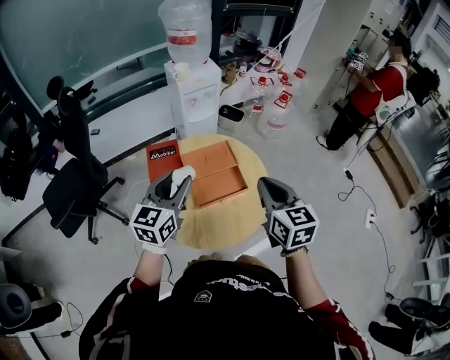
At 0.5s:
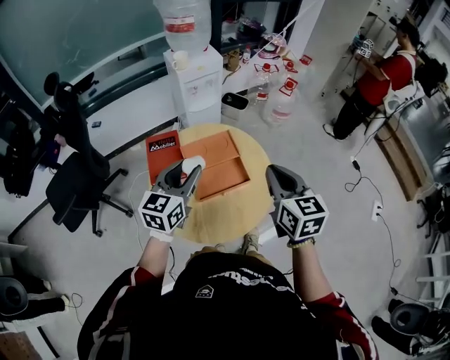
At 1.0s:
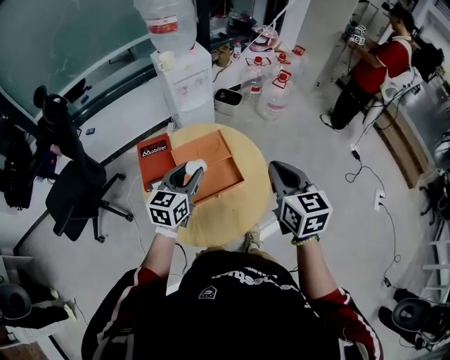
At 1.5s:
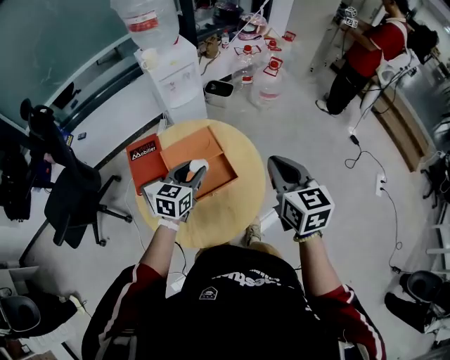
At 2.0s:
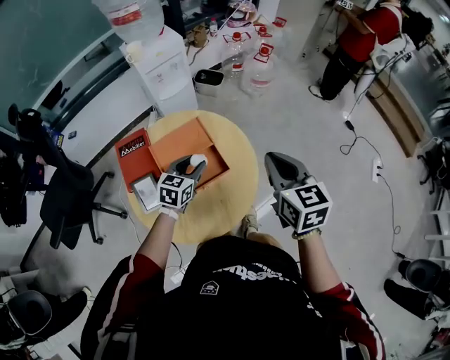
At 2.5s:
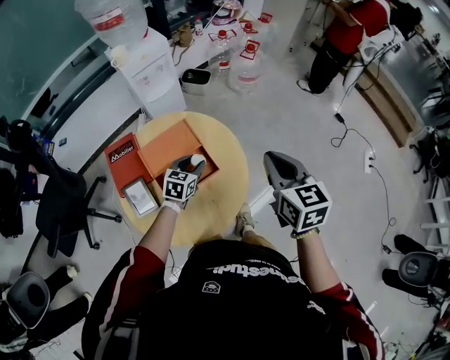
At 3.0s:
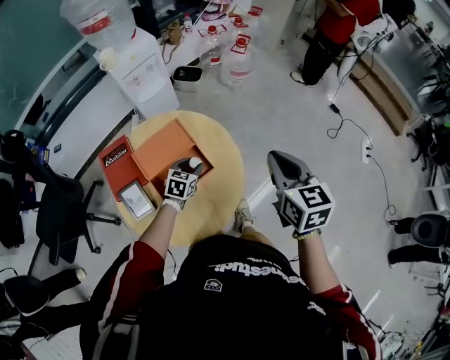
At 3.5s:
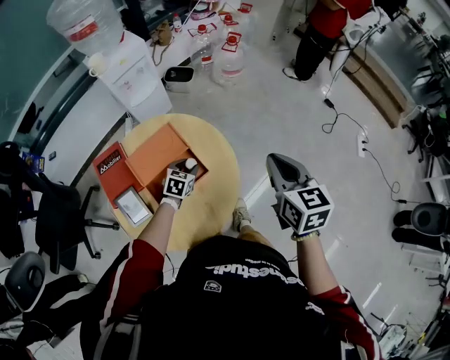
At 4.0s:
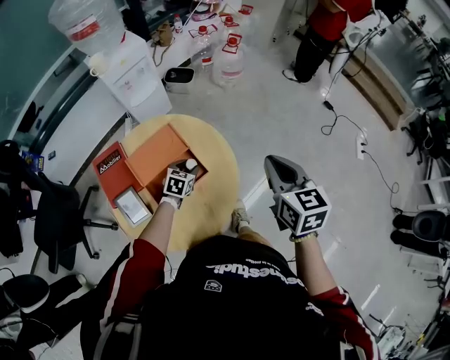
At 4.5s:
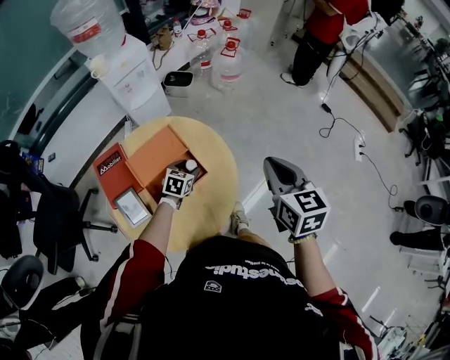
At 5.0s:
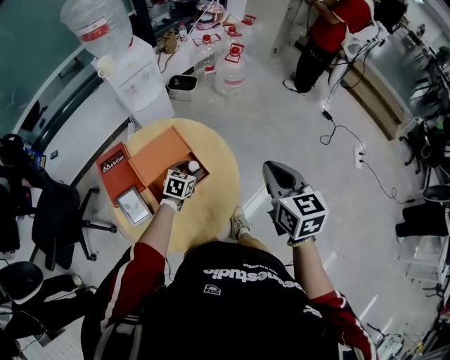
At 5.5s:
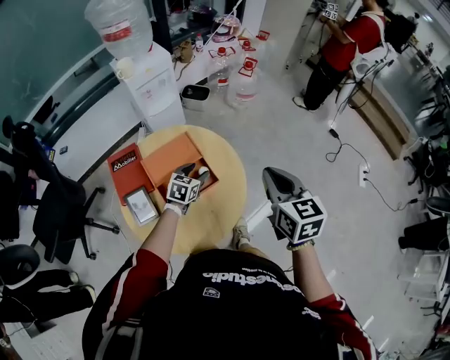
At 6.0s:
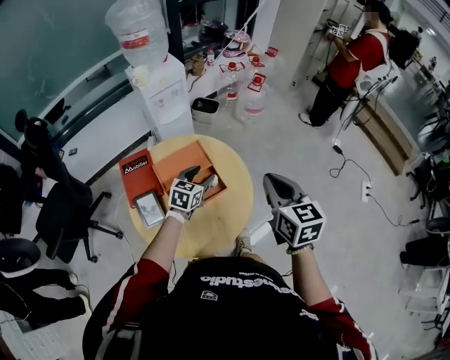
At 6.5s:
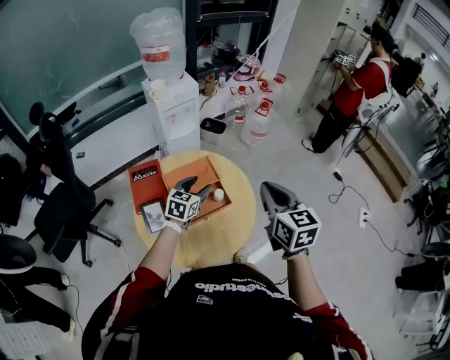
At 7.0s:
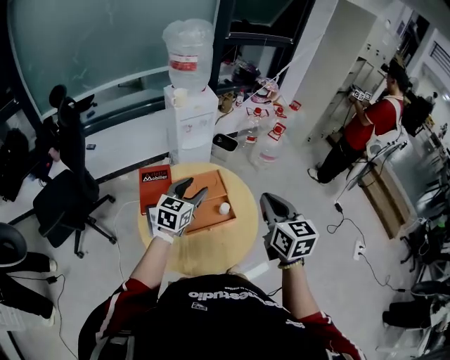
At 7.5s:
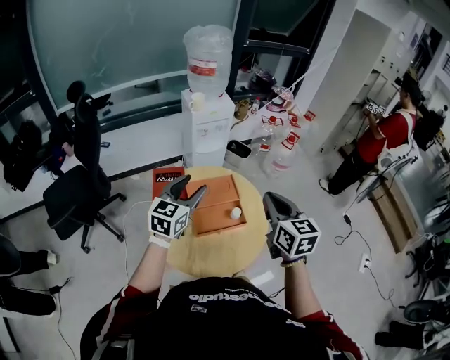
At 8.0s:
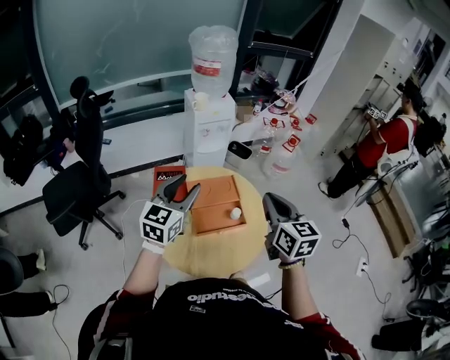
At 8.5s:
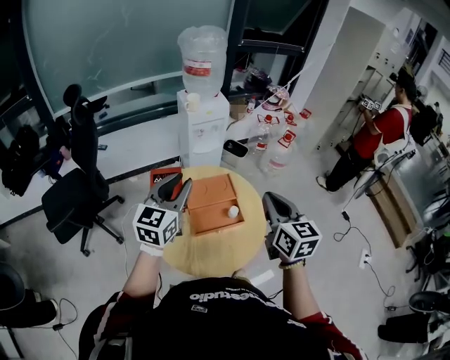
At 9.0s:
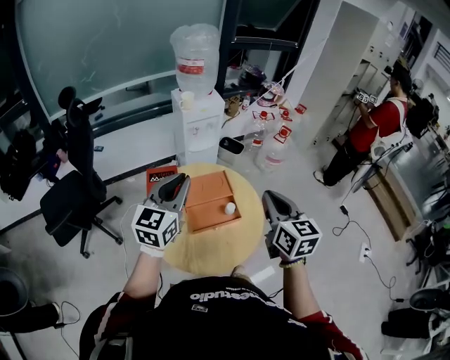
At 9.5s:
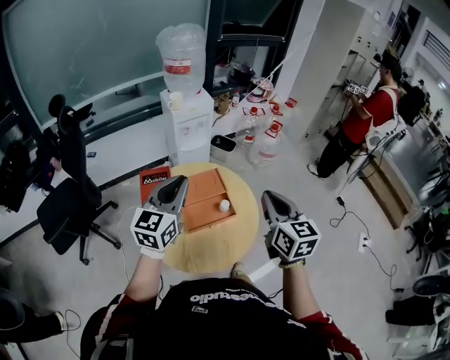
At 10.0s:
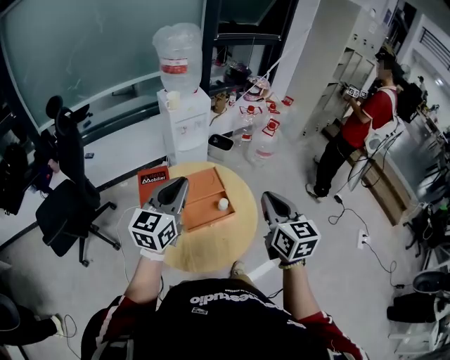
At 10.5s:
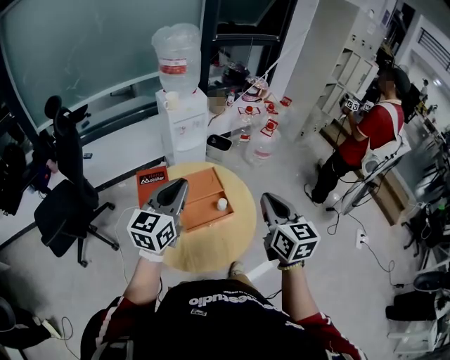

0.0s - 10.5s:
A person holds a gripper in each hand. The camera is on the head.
0.0s - 2.0s: The right gripper is displaced to the right and forward by about 15 cm. The left gripper is displaced downward, to the right and forward by some 30 cm, and swivels about 30 degrees.
2.0s - 4.0s: The left gripper shifts approximately 15 cm downward and to the right, while the right gripper travels to the right by about 5 cm.
4.0s - 6.5s: The right gripper is displaced to the left and upward by some 15 cm. Meanwhile the left gripper moves upward and to the left, some 20 cm, and changes its angle by roughly 20 degrees.
6.5s - 8.5s: The right gripper shifts approximately 5 cm to the left, while the left gripper shifts roughly 25 cm upward and to the left, turns by about 30 degrees, and closes.
8.5s - 10.5s: The left gripper ends up about 5 cm from where it was. Meanwhile the right gripper moves some 5 cm.

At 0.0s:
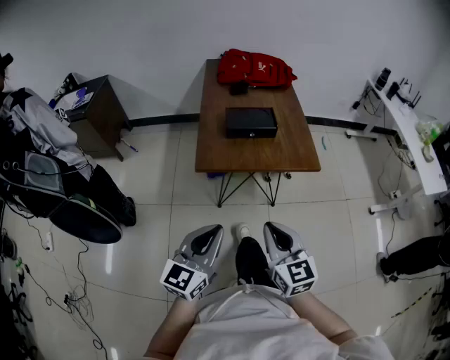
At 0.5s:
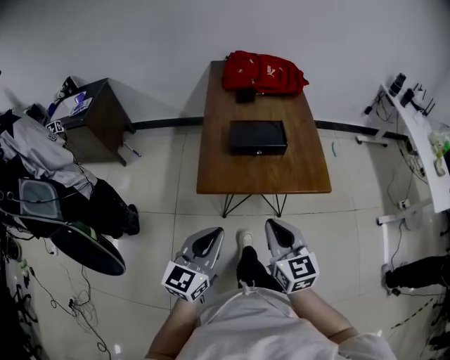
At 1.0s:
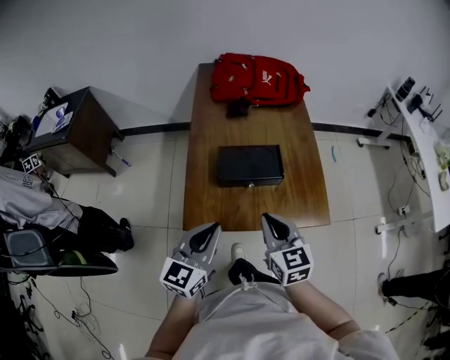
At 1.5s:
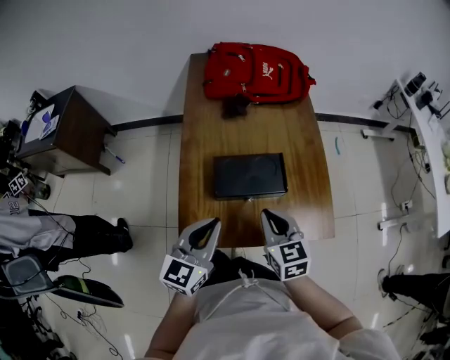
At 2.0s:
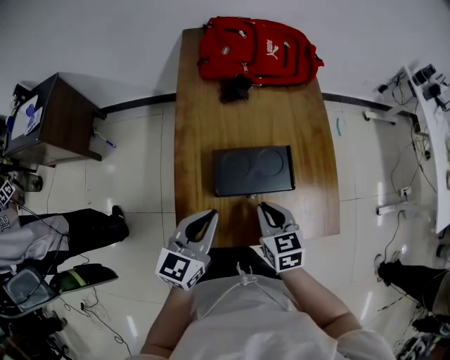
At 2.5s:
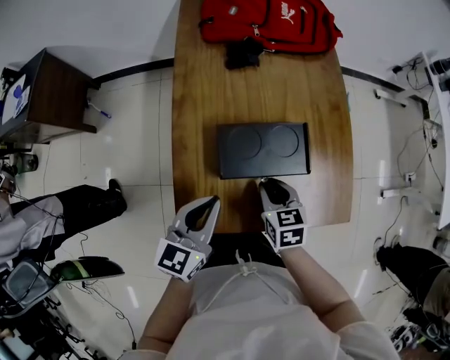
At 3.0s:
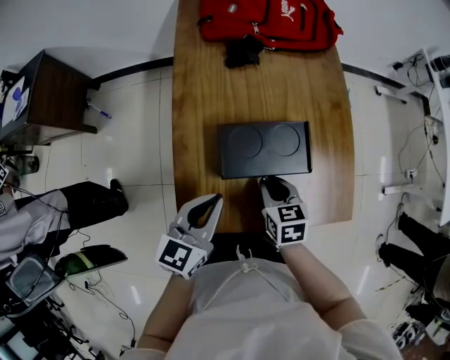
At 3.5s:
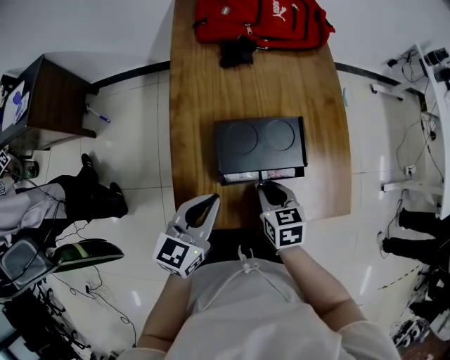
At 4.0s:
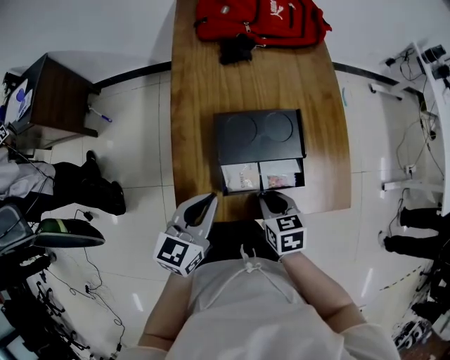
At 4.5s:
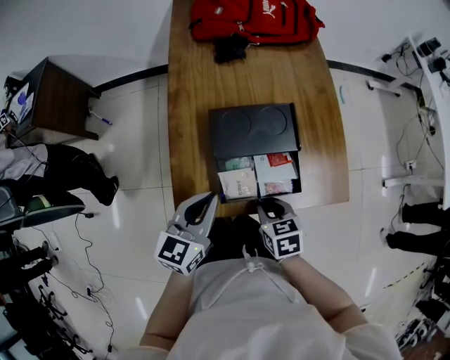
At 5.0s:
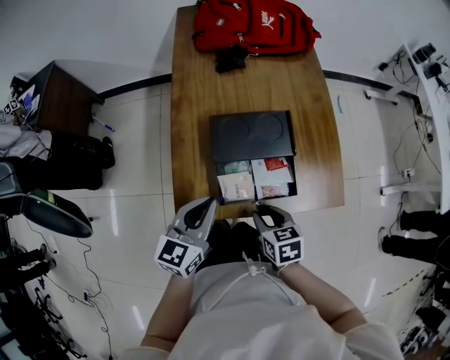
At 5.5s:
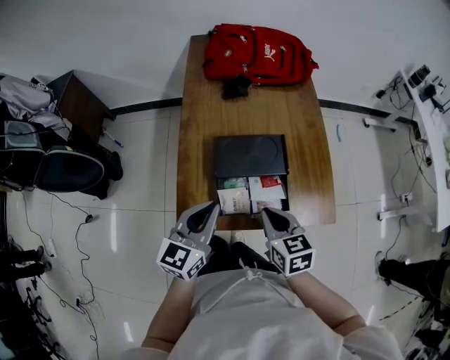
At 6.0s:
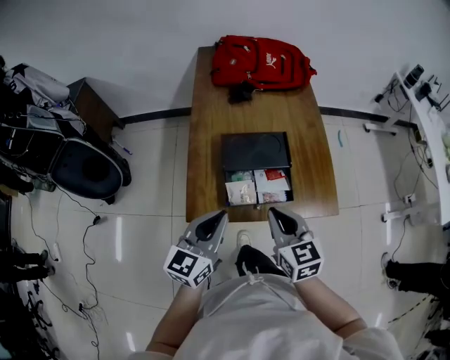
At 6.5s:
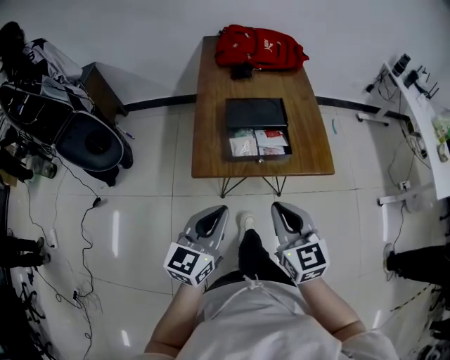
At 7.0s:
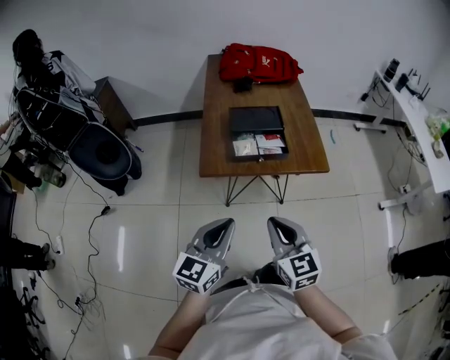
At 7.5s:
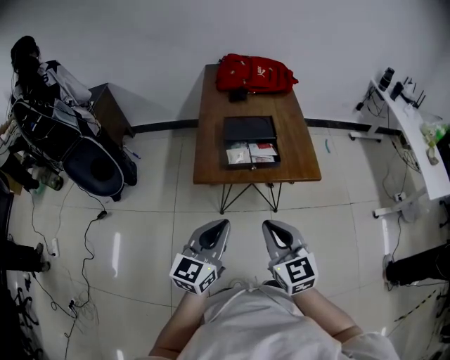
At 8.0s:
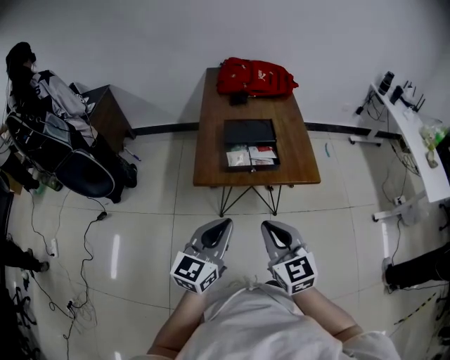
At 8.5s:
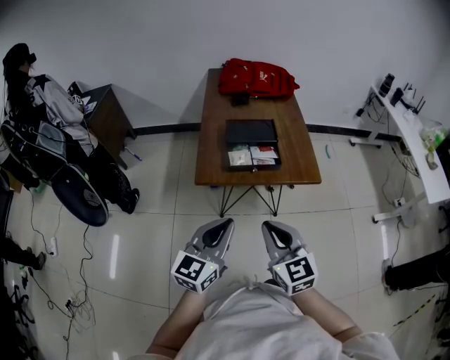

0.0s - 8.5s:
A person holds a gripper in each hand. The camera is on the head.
0.0s - 2.0s: The two grippers travel together, forward, roughly 40 cm. The right gripper swivels about 30 degrees.
2.0s - 4.0s: The right gripper travels downward and backward by some 10 cm. The left gripper moves downward, about 5 cm.
4.0s - 6.5s: The left gripper heads backward and upward, covering some 25 cm. The right gripper goes forward and backward, some 20 cm each way, reversing 2 times, and points its fingers some 30 degrees further upward.
6.5s - 8.5s: Both grippers move backward, roughly 10 cm.

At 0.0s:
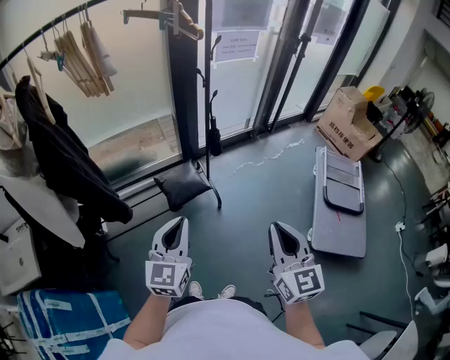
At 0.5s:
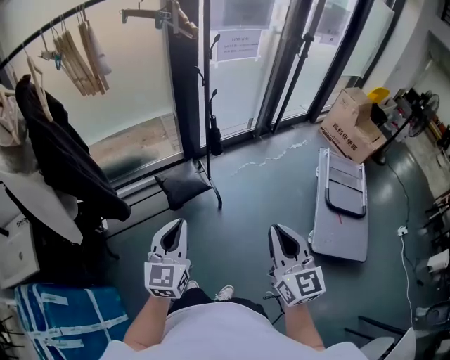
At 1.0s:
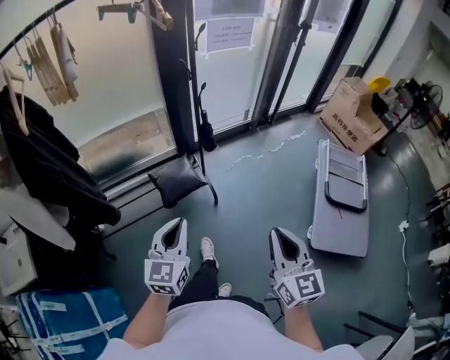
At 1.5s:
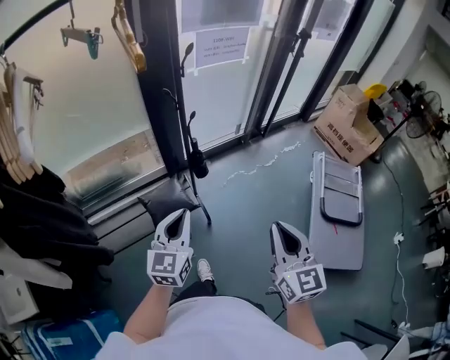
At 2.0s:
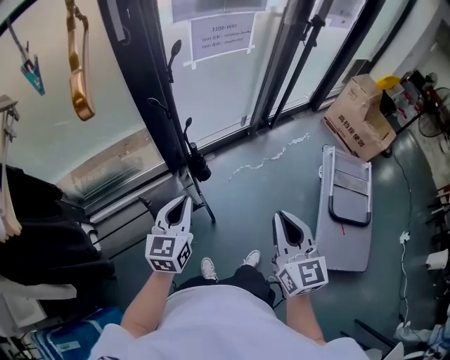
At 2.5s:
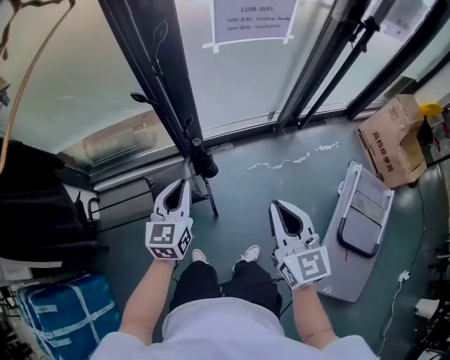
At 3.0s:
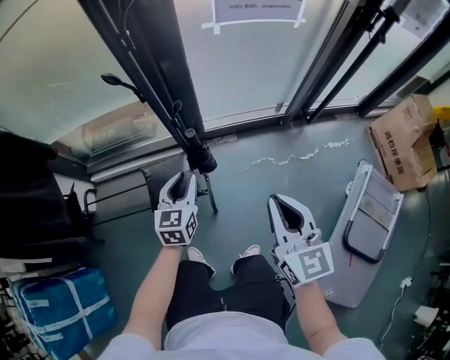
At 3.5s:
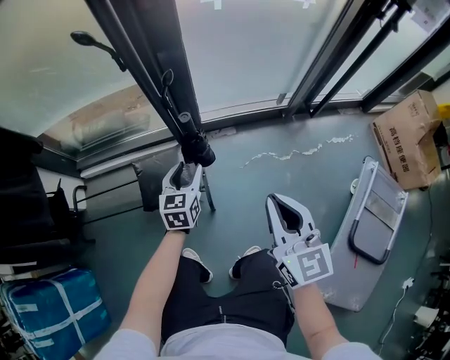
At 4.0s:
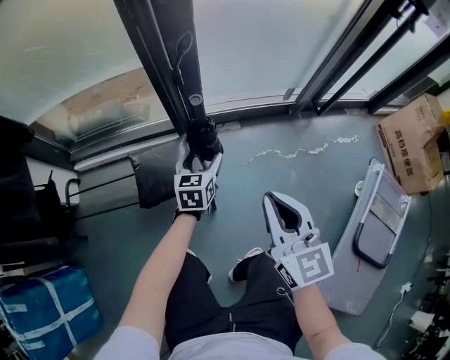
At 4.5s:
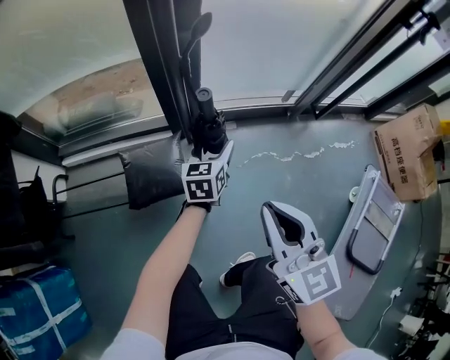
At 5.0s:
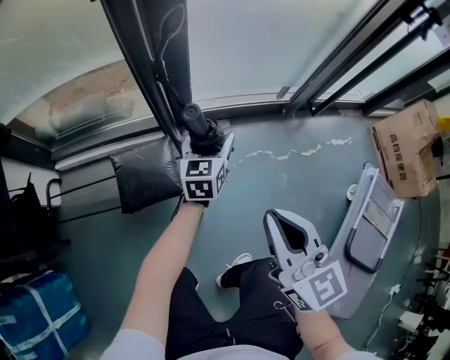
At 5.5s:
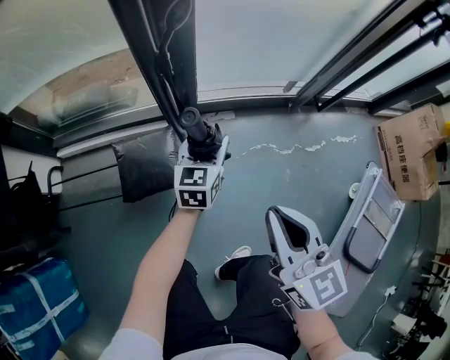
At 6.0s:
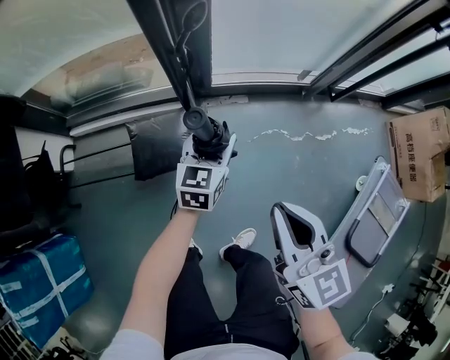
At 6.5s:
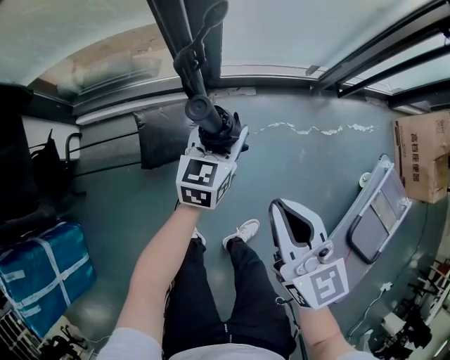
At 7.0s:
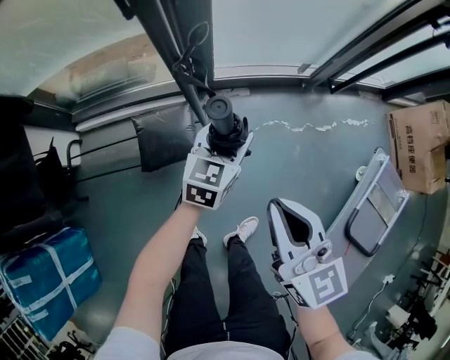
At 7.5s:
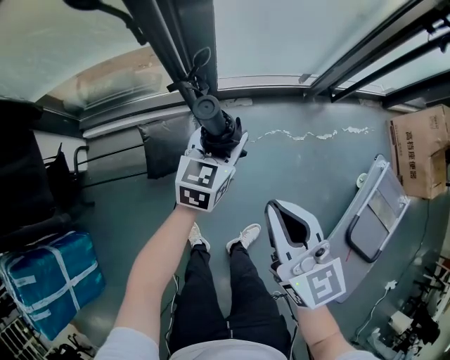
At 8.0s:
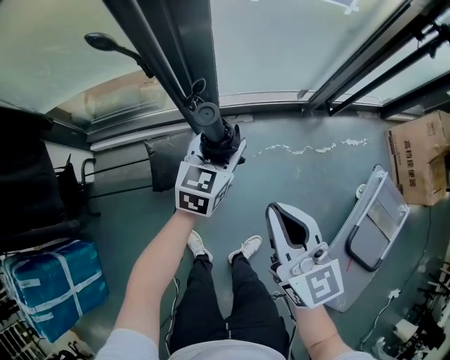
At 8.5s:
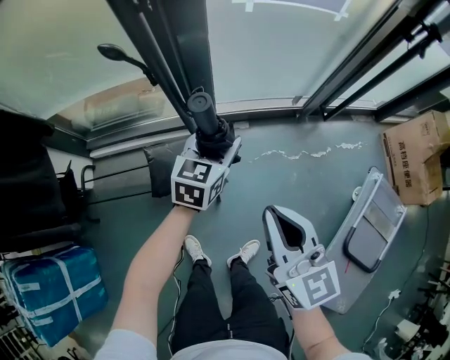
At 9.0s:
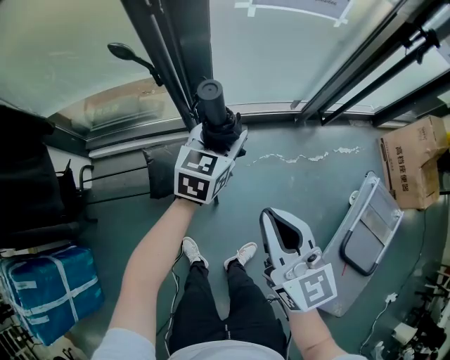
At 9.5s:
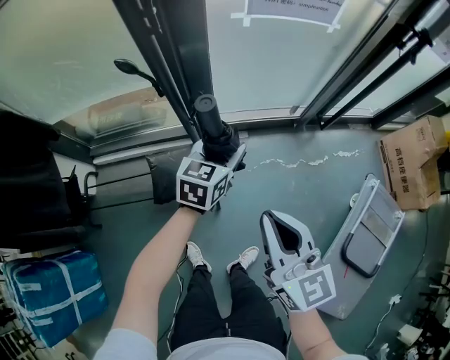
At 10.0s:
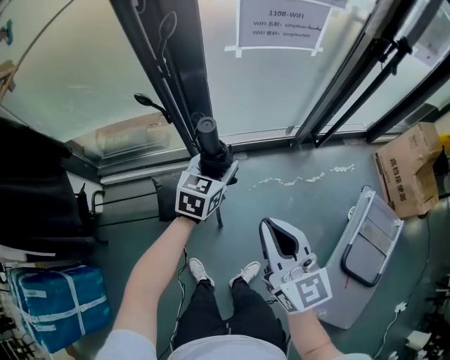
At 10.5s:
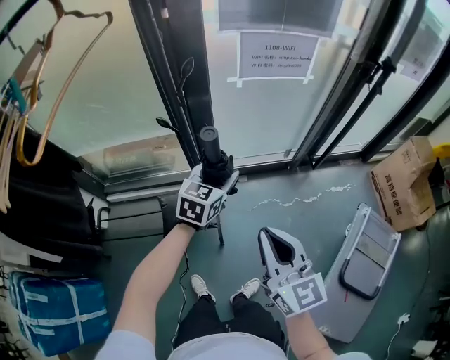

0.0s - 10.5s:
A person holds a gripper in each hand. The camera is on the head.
0.0s - 2.0s: The grippers both shift forward by about 35 cm.
2.0s - 4.0s: The two grippers go roughly 35 cm downward and forward. The left gripper changes its angle by about 20 degrees, and opens. The right gripper swivels some 30 degrees.
4.0s - 6.5s: The left gripper goes about 10 cm upward.
6.5s - 8.5s: Both grippers travel together upward, roughly 10 cm.
8.5s - 10.5s: Both grippers travel together upward, roughly 10 cm.
